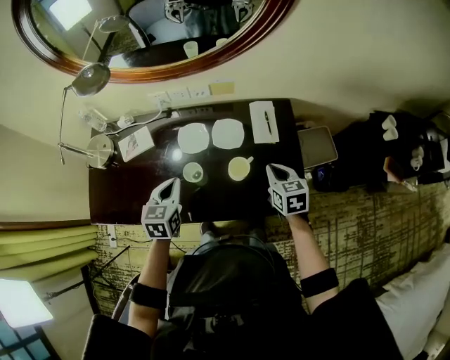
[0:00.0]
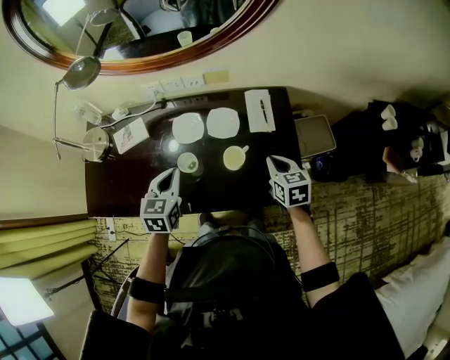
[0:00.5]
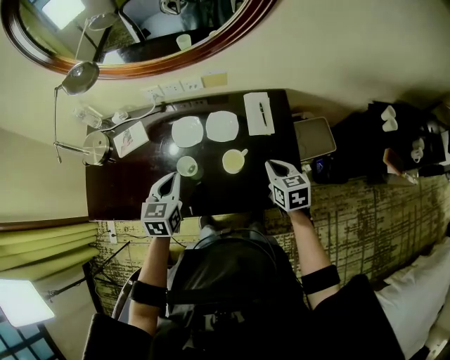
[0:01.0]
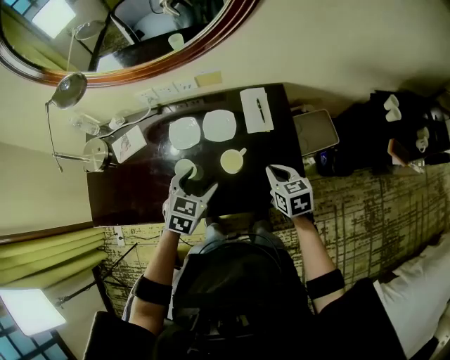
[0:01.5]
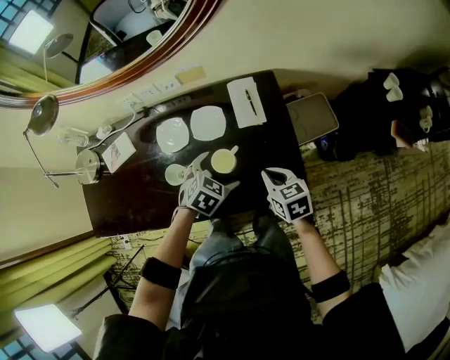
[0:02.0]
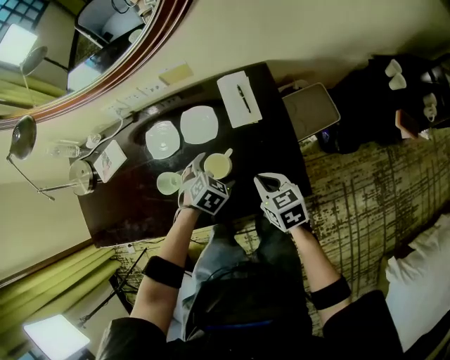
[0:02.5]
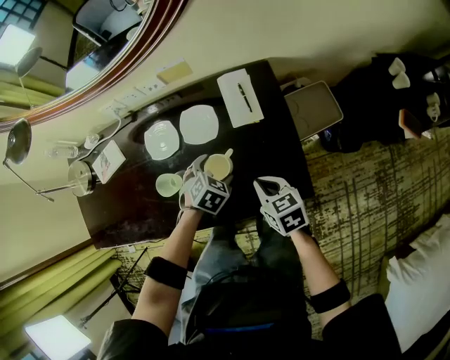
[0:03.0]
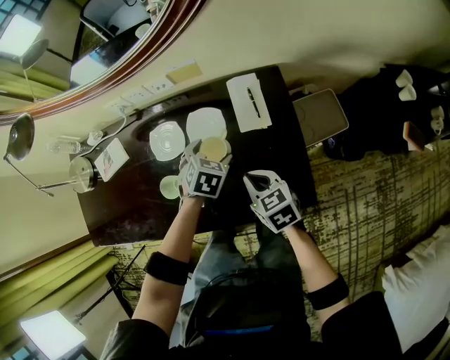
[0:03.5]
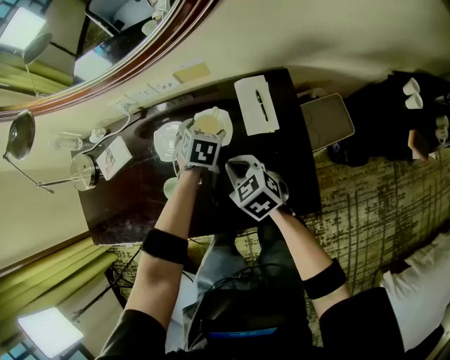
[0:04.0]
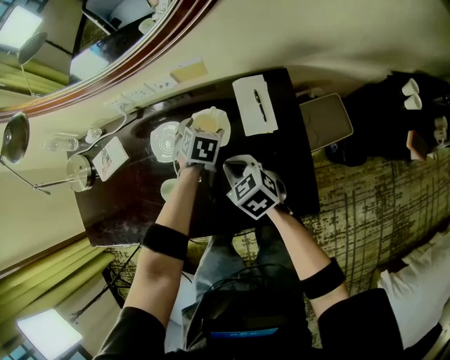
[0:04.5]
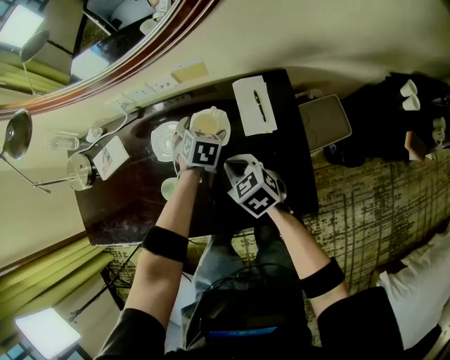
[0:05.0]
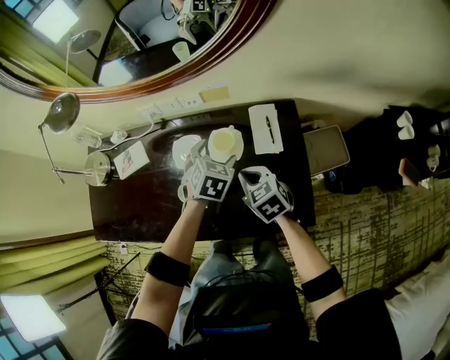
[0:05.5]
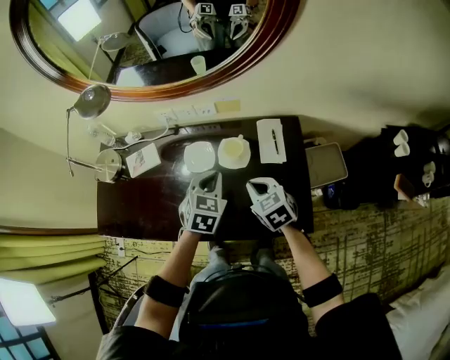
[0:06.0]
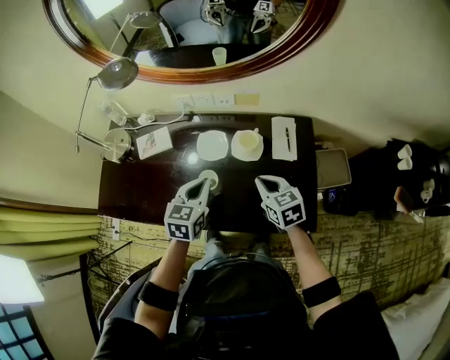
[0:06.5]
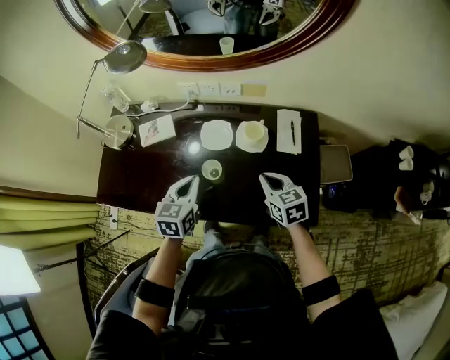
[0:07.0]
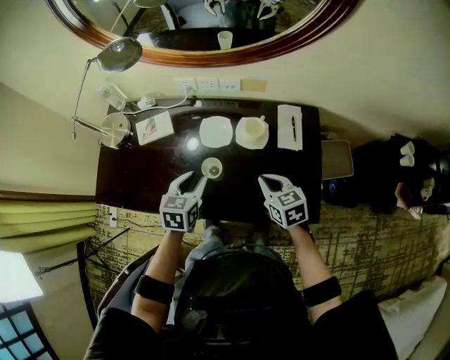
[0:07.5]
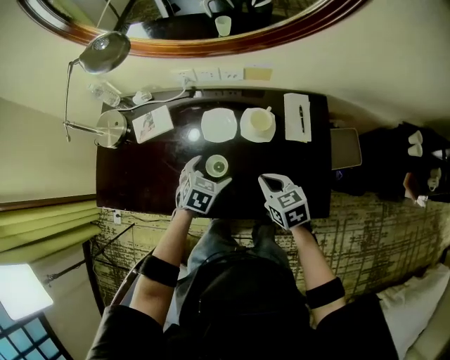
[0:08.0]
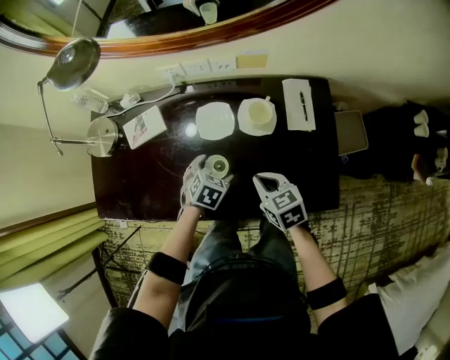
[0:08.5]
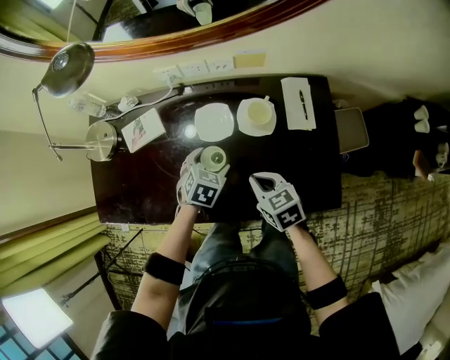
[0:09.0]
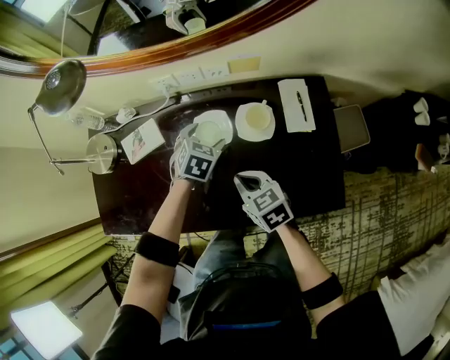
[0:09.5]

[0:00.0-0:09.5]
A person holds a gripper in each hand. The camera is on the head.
0:00.0 to 0:02.0: The left gripper shifts roughly 25 cm to the right and downward, rotates roughly 50 degrees, and opens up, while the right gripper is displaced downward by approximately 5 cm.
0:02.0 to 0:04.0: The right gripper heads to the left and forward, covering approximately 15 cm, and changes its angle by about 20 degrees. Meanwhile the left gripper is displaced forward by some 20 cm, and turns by some 20 degrees.
0:04.0 to 0:05.5: The left gripper travels upward by approximately 10 cm, while the right gripper travels upward by about 5 cm.
0:05.5 to 0:07.5: The left gripper is displaced to the left and backward by approximately 25 cm, turns by approximately 30 degrees, and closes up, while the right gripper travels backward by roughly 5 cm.
0:07.5 to 0:09.5: The left gripper travels forward and downward by roughly 20 cm, rotates about 30 degrees, and opens its fingers; the right gripper heads to the left and downward, covering about 10 cm.

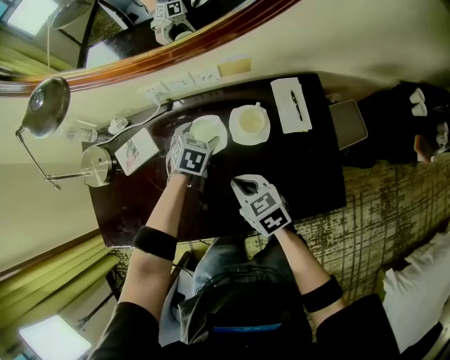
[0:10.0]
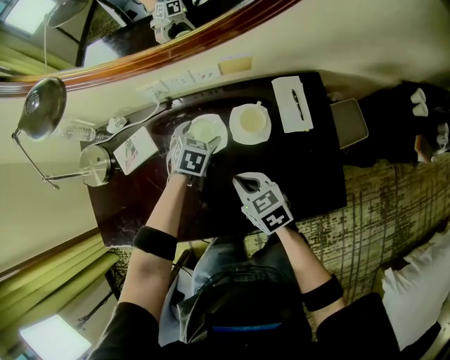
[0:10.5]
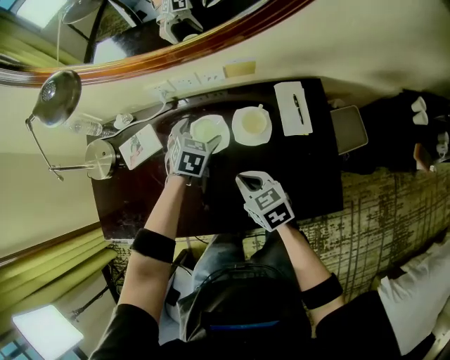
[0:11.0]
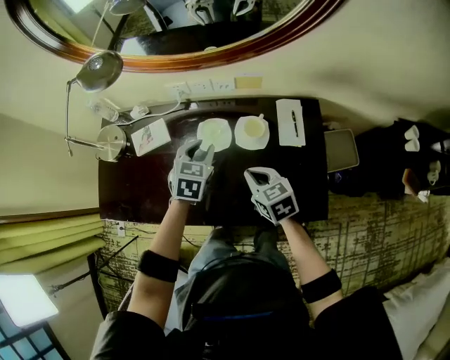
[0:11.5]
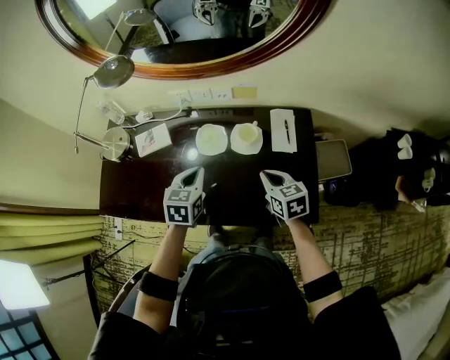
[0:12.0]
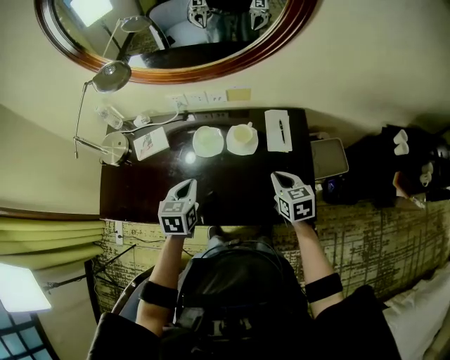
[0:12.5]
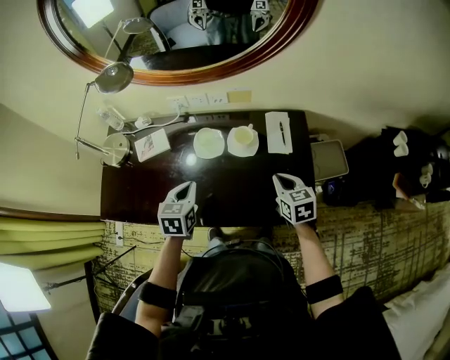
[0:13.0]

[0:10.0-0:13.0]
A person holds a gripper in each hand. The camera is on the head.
0:10.0 to 0:11.5: The right gripper heads upward and to the right, covering about 10 cm, while the left gripper heads upward and backward, covering approximately 15 cm, and closes up.
0:11.5 to 0:13.0: The right gripper moves to the right, about 15 cm. Meanwhile the left gripper heads backward, covering some 10 cm.

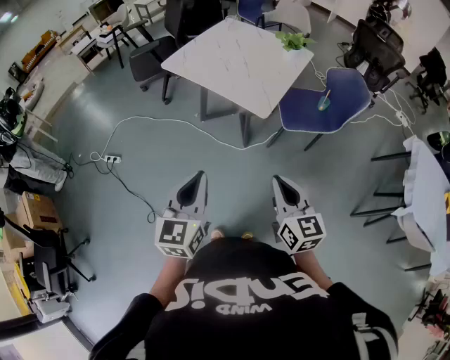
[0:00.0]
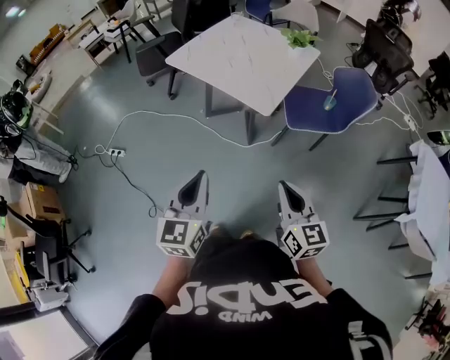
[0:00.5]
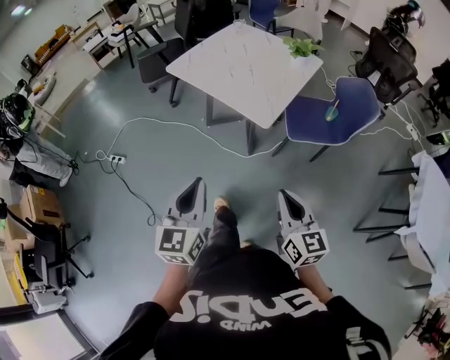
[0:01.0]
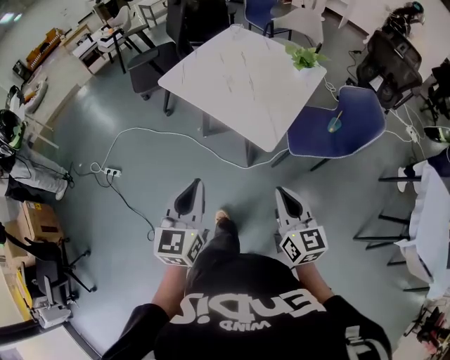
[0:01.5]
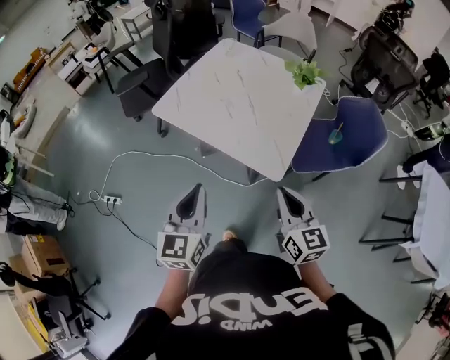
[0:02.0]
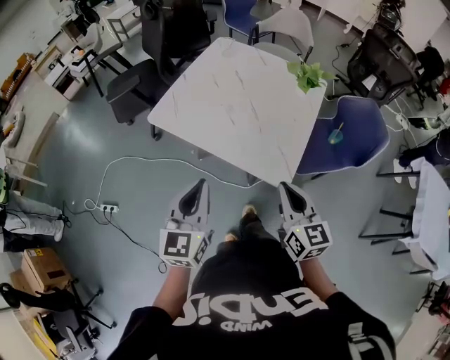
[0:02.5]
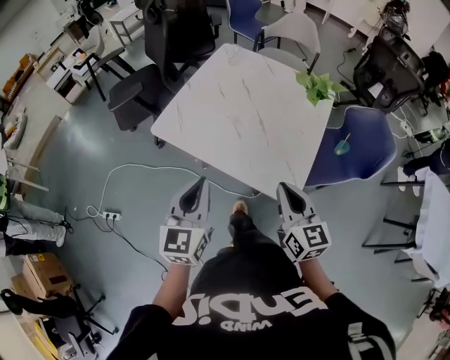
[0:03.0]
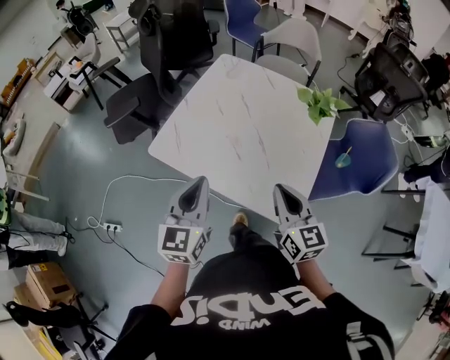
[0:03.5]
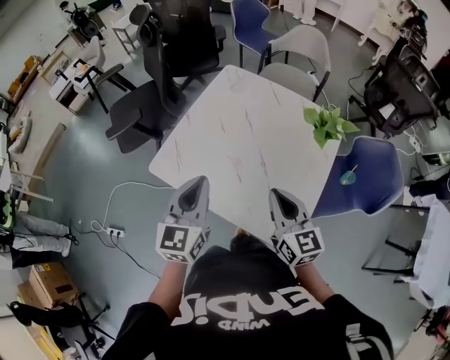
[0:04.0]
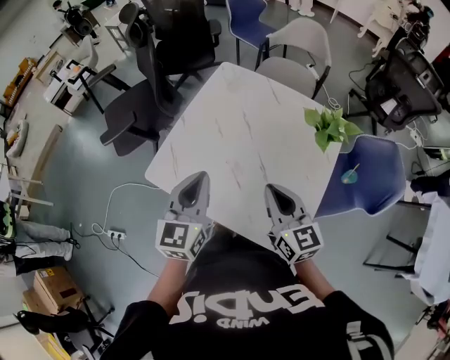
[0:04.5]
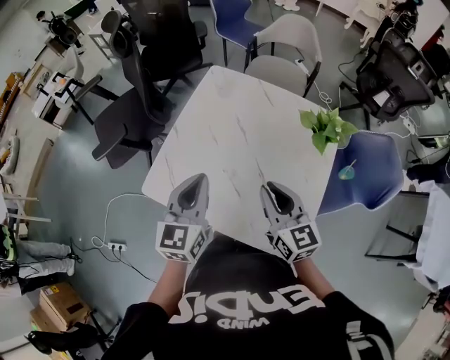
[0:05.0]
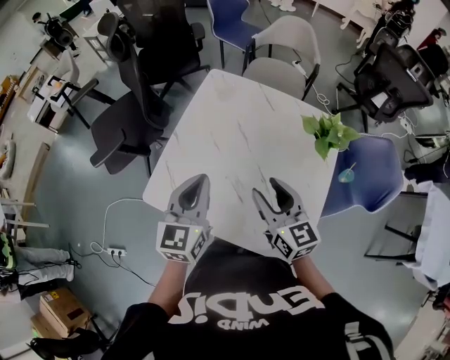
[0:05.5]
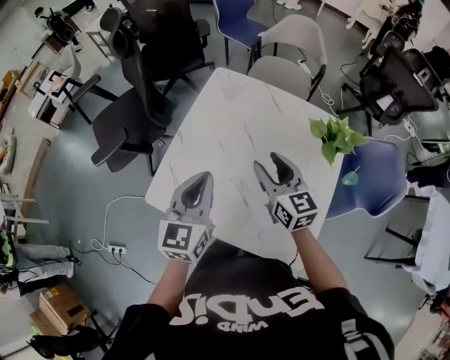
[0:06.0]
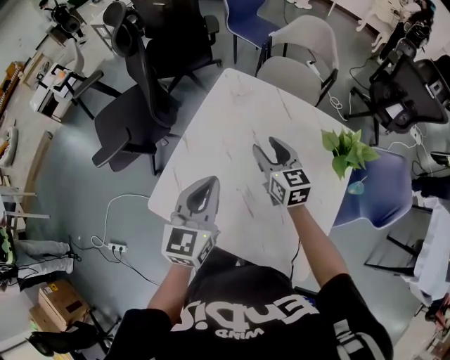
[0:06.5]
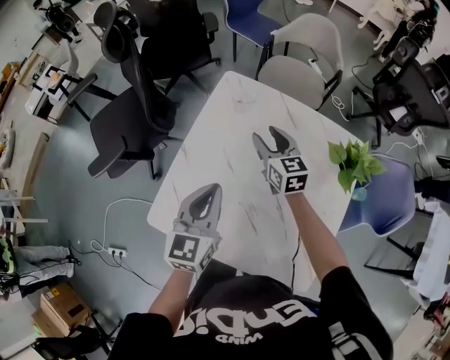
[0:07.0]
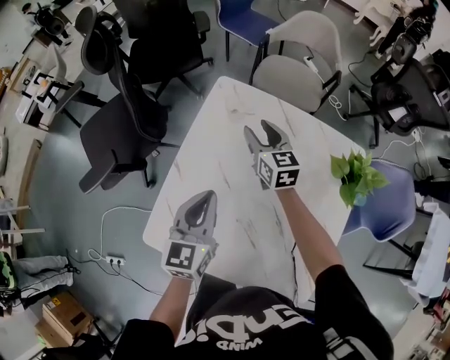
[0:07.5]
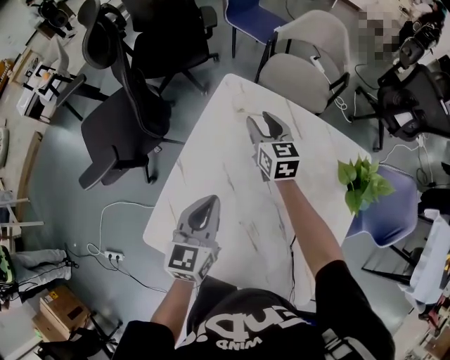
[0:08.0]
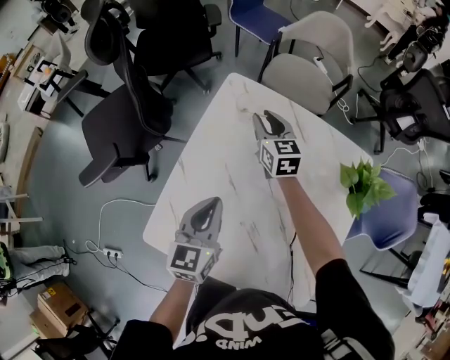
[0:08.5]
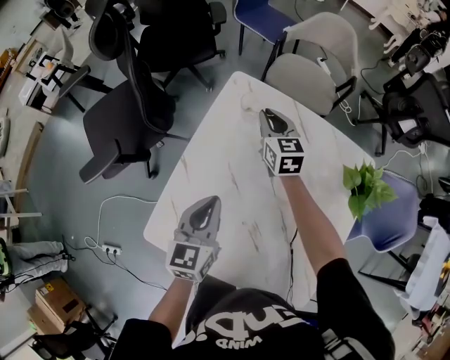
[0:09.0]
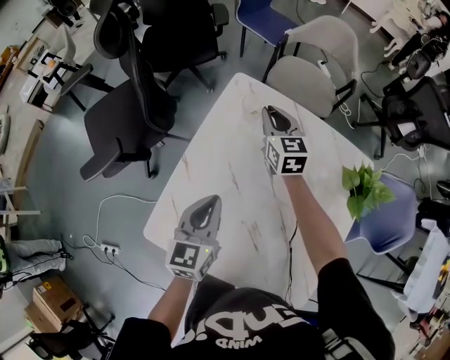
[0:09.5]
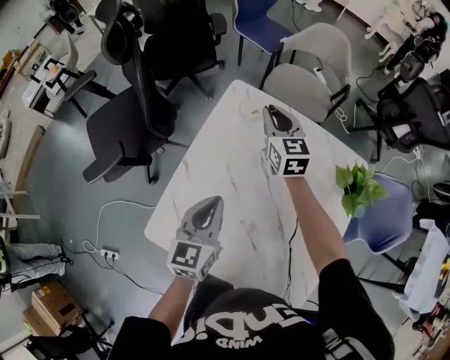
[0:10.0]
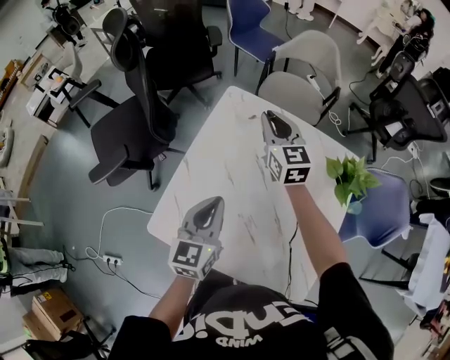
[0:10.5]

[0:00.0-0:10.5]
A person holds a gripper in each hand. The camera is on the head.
0:00.0 to 0:02.0: Both grippers travel together forward, approximately 30 cm.
0:02.0 to 0:04.0: Both grippers move forward, roughly 30 cm.
0:04.0 to 0:06.5: The right gripper travels forward by about 30 cm, and opens its fingers. The left gripper heads forward, covering approximately 20 cm.
0:06.5 to 0:08.5: The left gripper travels downward and forward by some 15 cm; the right gripper is displaced forward by roughly 20 cm.
0:08.5 to 0:10.5: The left gripper shifts some 10 cm upward and backward; the right gripper moves upward and backward, some 15 cm.

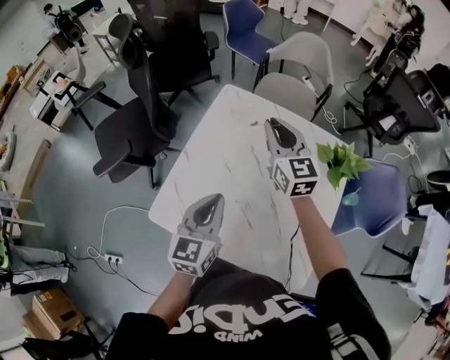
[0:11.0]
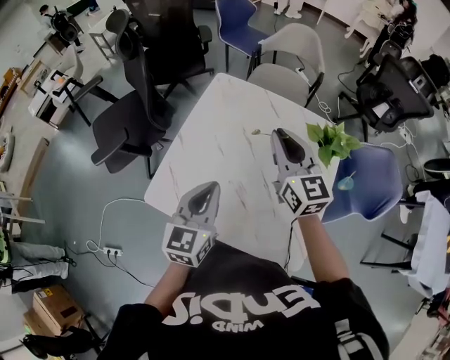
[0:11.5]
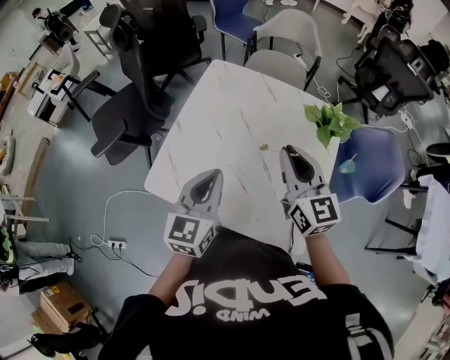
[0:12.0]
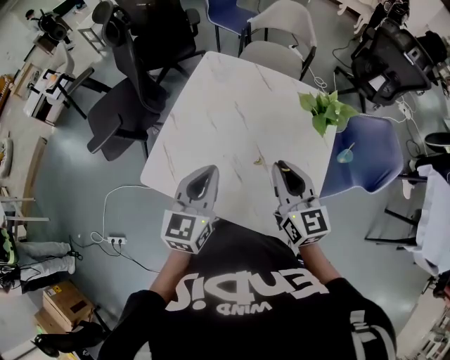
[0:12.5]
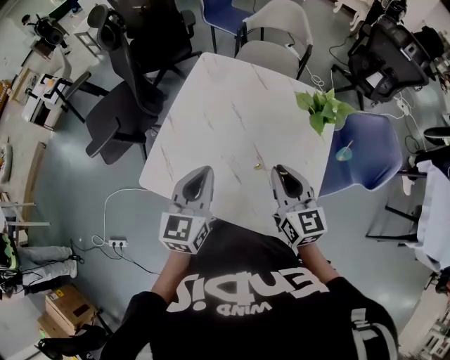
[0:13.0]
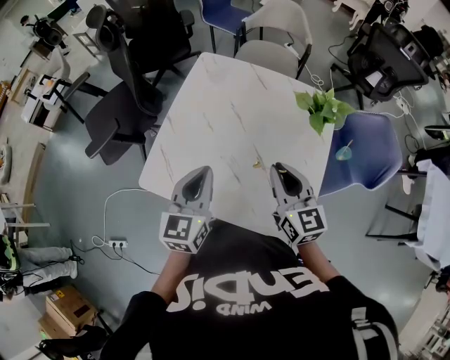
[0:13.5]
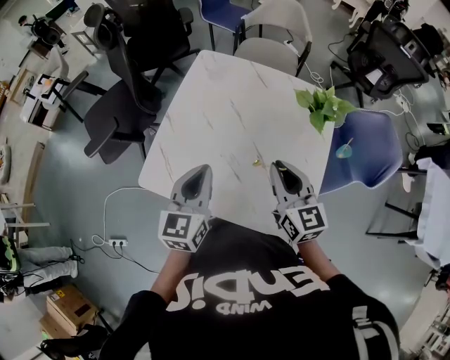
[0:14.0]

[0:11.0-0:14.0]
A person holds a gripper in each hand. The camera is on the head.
0:11.0 to 0:12.5: The right gripper goes about 25 cm backward, while the left gripper moves backward, roughly 10 cm.
0:12.5 to 0:14.0: There are only small adjustments of the grippers.
